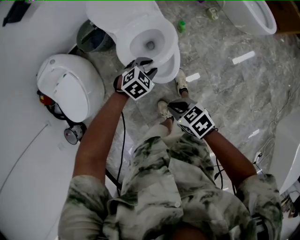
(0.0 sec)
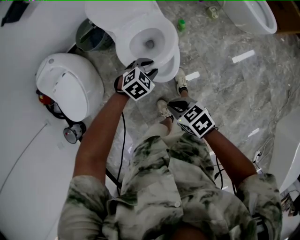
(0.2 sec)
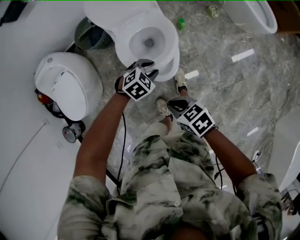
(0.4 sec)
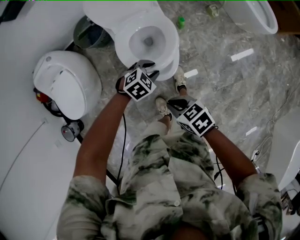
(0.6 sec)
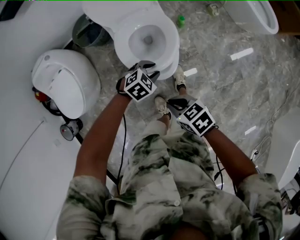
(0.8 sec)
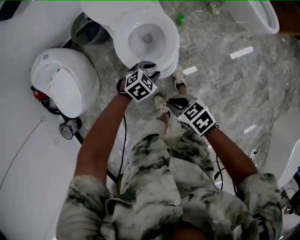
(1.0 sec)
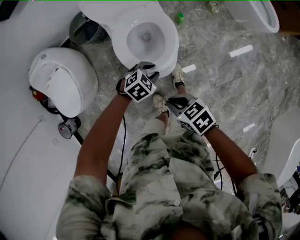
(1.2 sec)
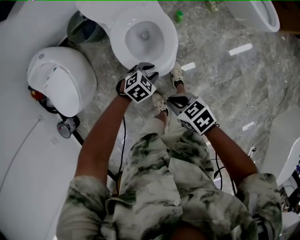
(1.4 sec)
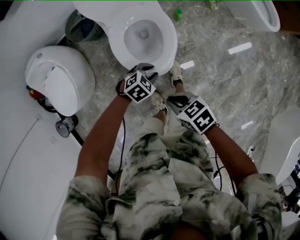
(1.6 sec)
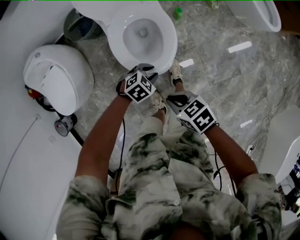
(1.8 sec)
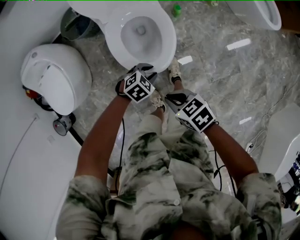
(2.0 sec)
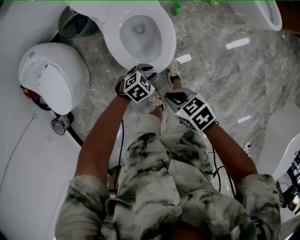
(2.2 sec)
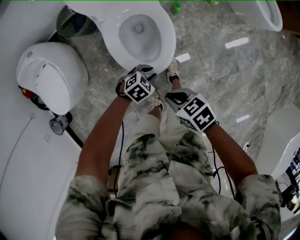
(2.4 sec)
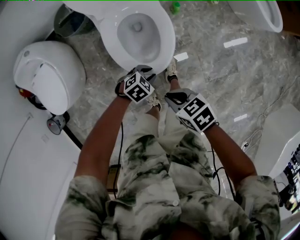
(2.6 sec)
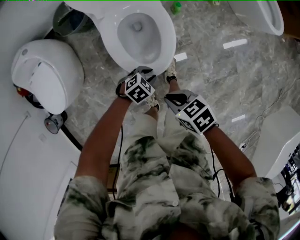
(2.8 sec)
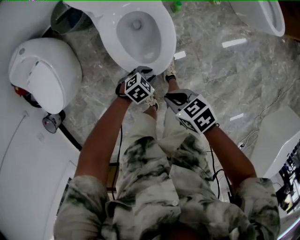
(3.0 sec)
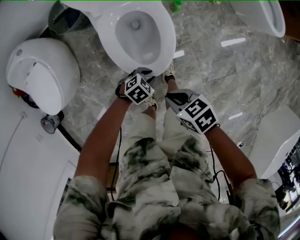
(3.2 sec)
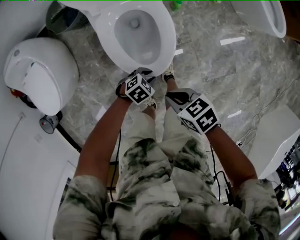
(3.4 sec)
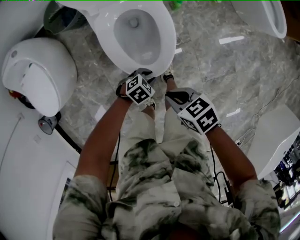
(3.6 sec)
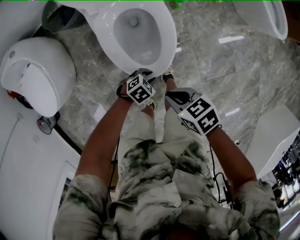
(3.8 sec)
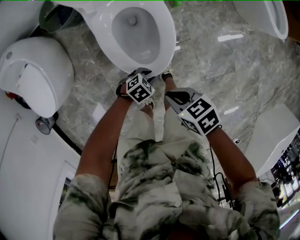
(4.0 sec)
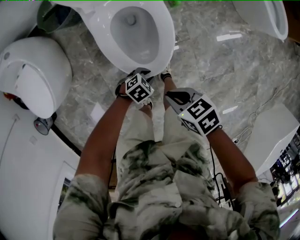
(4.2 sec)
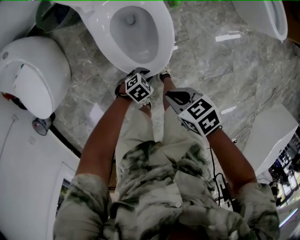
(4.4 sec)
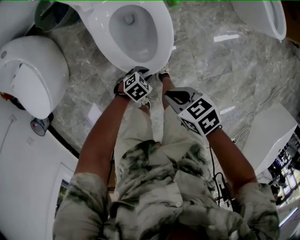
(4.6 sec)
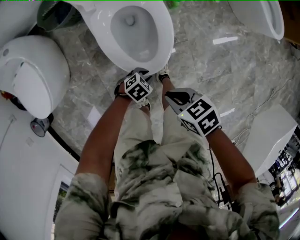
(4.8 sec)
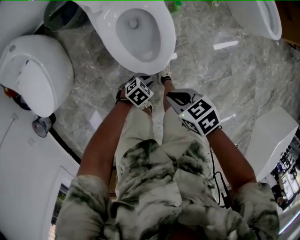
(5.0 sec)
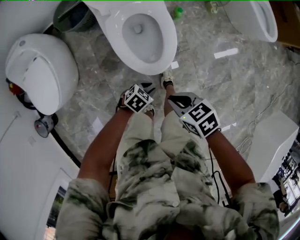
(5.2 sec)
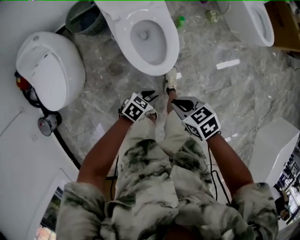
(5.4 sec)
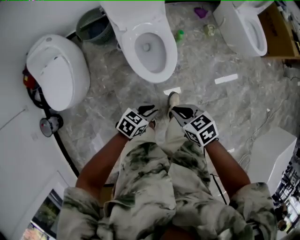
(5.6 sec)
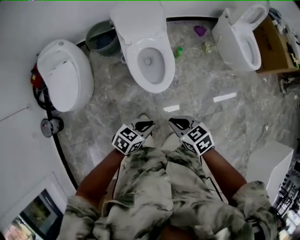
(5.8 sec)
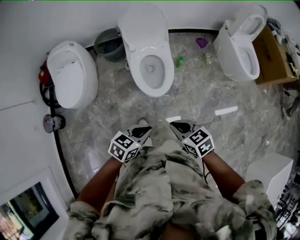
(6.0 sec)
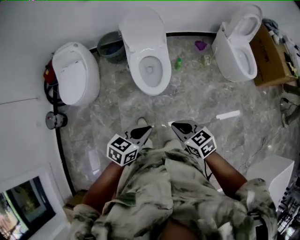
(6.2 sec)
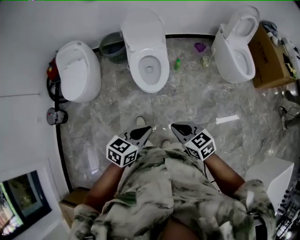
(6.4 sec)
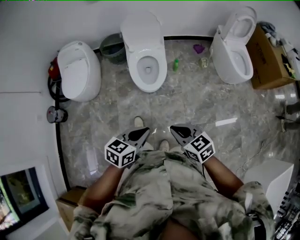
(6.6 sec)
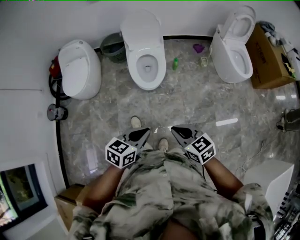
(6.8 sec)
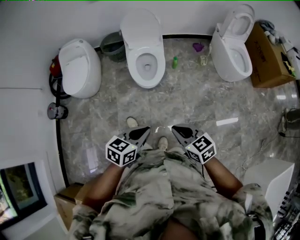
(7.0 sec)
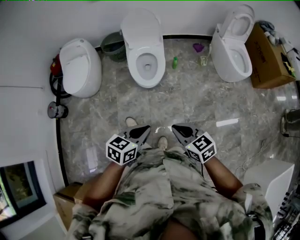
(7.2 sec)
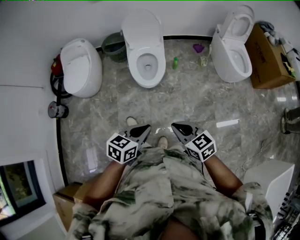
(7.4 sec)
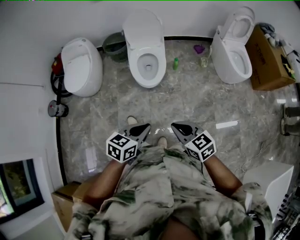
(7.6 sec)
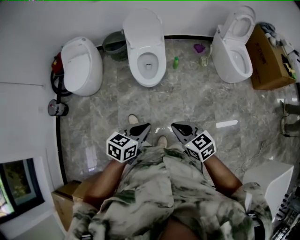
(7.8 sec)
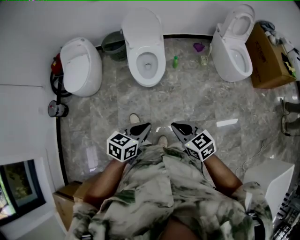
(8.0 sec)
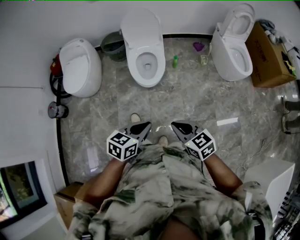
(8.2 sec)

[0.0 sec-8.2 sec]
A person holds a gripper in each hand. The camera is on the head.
0.0 sec to 1.6 sec: The left gripper moves downward, some 10 cm.
1.6 sec to 3.2 sec: The left gripper moves downward, some 10 cm; the right gripper travels downward by about 10 cm.
3.2 sec to 5.0 sec: The left gripper moves some 5 cm.
5.0 sec to 6.6 sec: The left gripper travels upward by about 50 cm, turns by some 50 degrees, and closes its fingers, while the right gripper moves some 50 cm, and changes its angle by roughly 30 degrees.
6.6 sec to 8.2 sec: The grippers move only a little.

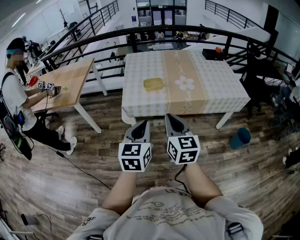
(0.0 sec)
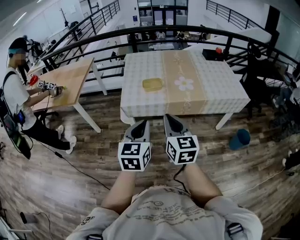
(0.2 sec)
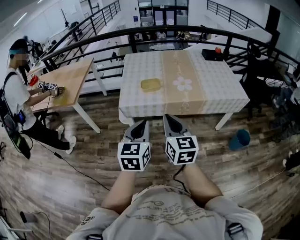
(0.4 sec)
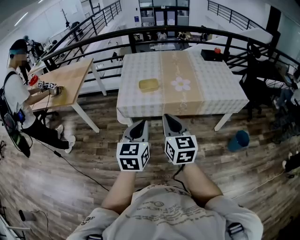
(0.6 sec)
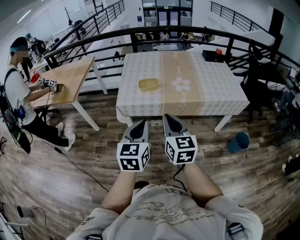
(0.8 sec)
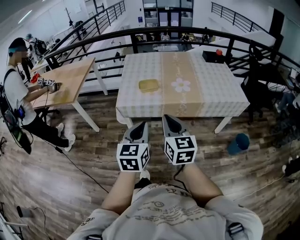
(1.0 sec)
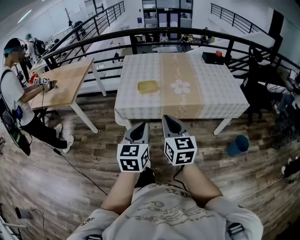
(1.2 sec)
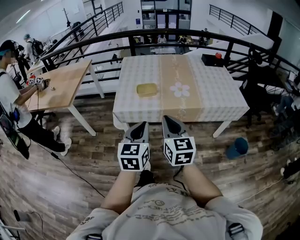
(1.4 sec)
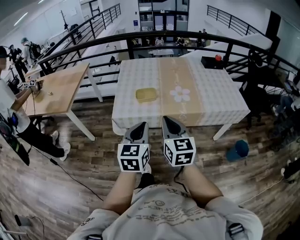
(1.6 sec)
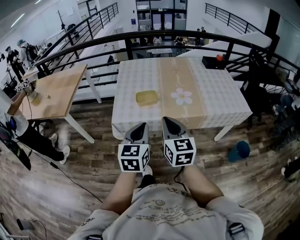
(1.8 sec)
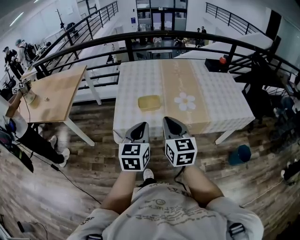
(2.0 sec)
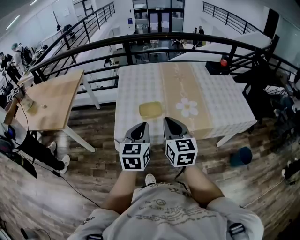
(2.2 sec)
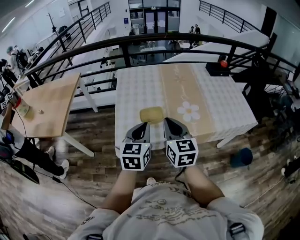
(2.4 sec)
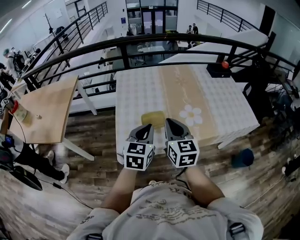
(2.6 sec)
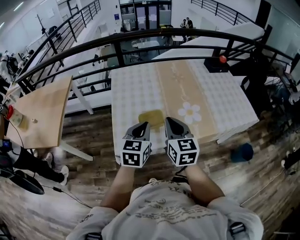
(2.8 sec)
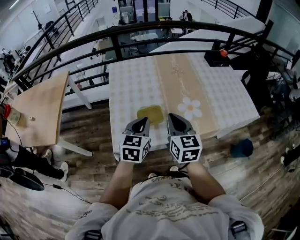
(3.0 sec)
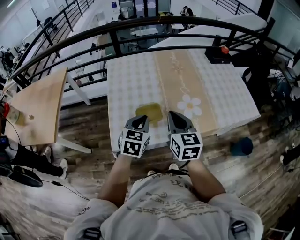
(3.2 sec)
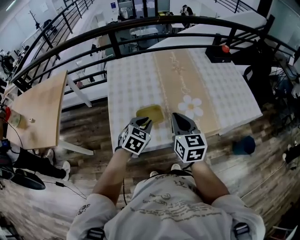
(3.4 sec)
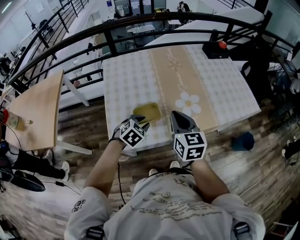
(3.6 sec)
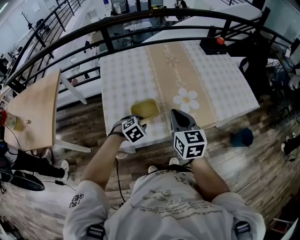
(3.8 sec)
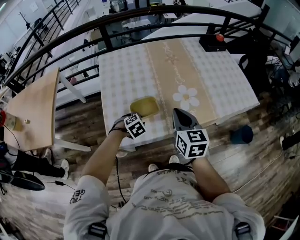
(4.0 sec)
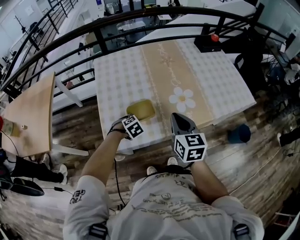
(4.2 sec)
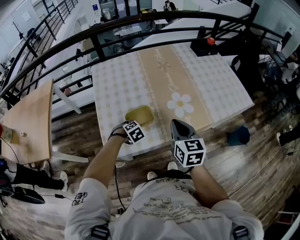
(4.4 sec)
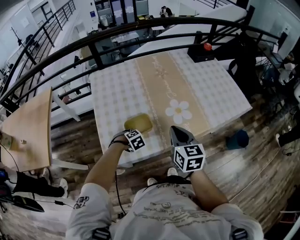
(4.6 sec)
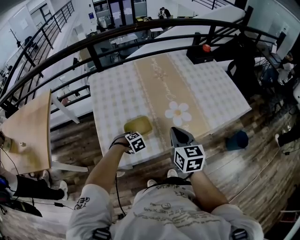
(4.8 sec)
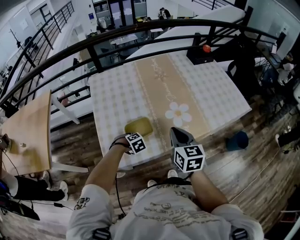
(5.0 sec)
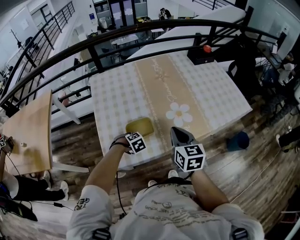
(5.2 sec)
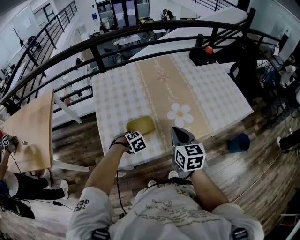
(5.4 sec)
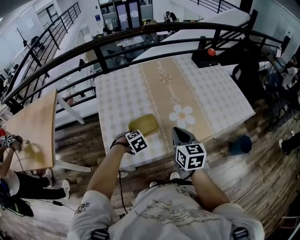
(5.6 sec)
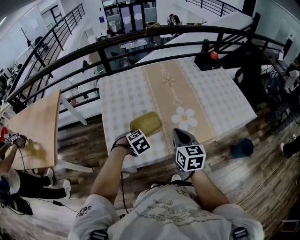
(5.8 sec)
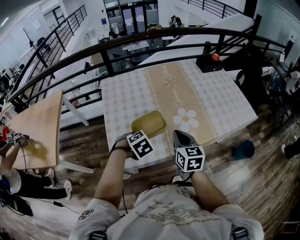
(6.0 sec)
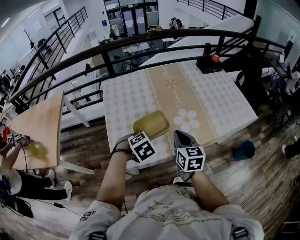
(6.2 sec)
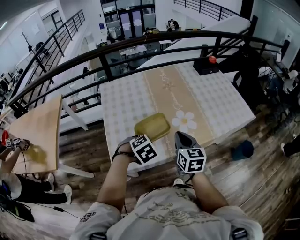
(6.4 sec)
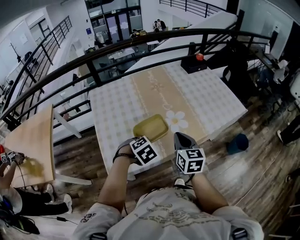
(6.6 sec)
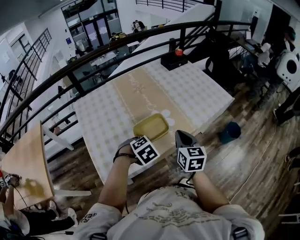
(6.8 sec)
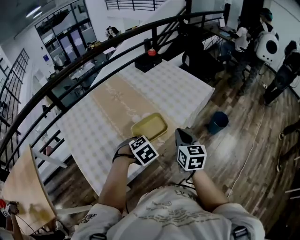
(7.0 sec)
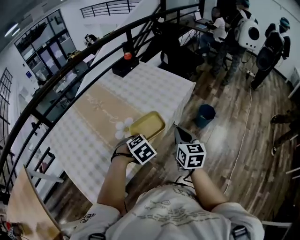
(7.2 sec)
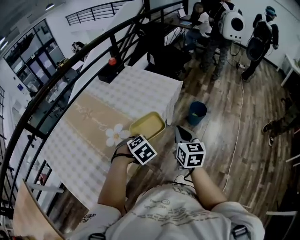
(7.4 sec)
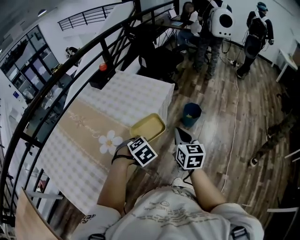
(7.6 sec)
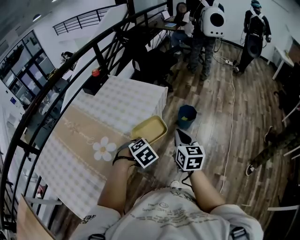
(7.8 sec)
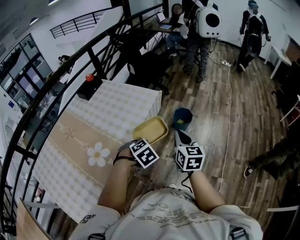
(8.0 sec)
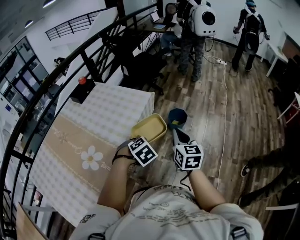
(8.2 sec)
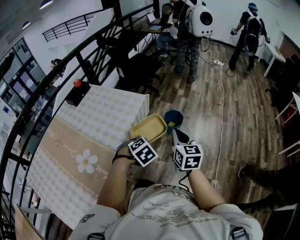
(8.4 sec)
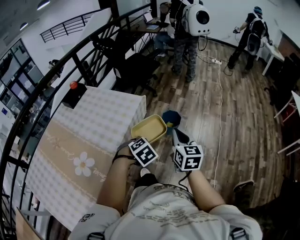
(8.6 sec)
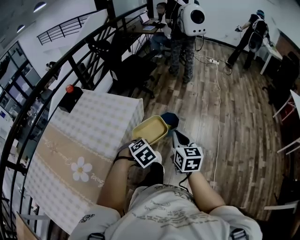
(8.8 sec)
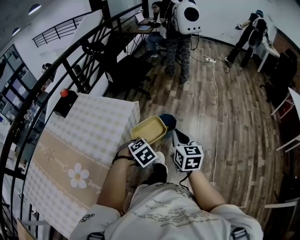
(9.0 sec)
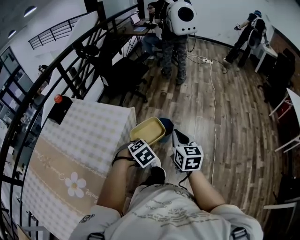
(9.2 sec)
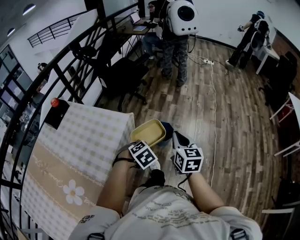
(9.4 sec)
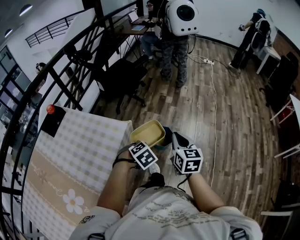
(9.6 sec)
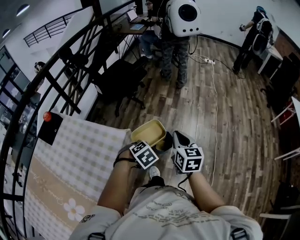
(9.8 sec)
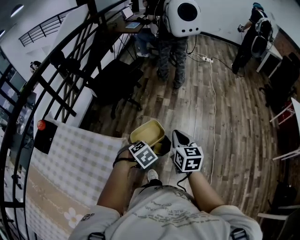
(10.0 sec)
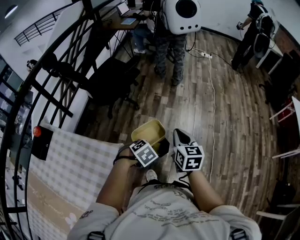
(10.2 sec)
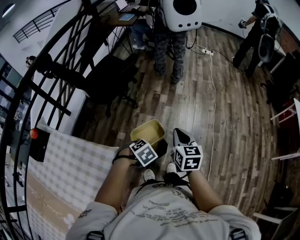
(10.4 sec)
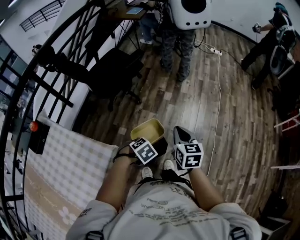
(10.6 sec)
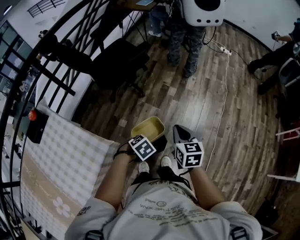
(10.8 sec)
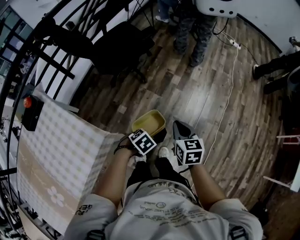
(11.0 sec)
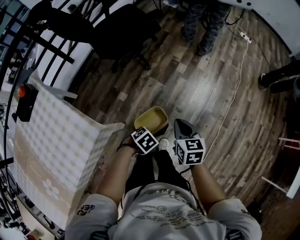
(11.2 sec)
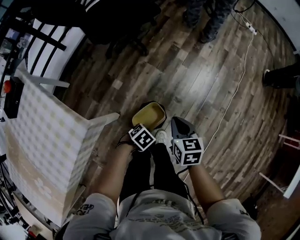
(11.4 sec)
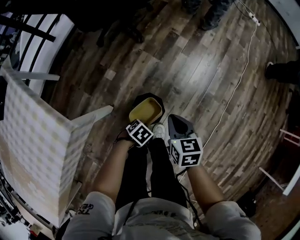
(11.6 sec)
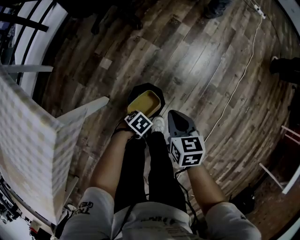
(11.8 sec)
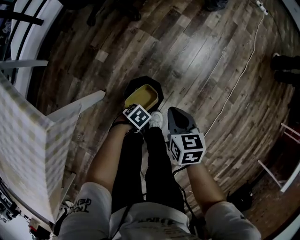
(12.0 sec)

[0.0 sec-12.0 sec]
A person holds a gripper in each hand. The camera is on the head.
0.0 sec to 1.6 sec: The two grippers go roughly 10 cm forward and to the right.
1.6 sec to 3.0 sec: Both grippers move forward, some 30 cm.
3.0 sec to 4.4 sec: The left gripper travels downward by approximately 25 cm, points its fingers roughly 50 degrees further downward, and opens up. The right gripper changes place by approximately 10 cm.
4.4 sec to 6.0 sec: The left gripper is displaced upward by approximately 15 cm, and closes its fingers.
6.0 sec to 7.6 sec: Both grippers are carried some 40 cm. The right gripper changes its angle by about 50 degrees, while the left gripper rotates approximately 40 degrees.
7.6 sec to 9.0 sec: The right gripper is displaced to the right and forward by some 25 cm; the left gripper heads forward and to the right, covering some 30 cm.
9.0 sec to 10.4 sec: The two grippers travel together, about 40 cm.
10.4 sec to 12.0 sec: Both grippers travel together downward, some 40 cm. The right gripper turns by approximately 30 degrees. Meanwhile the left gripper turns by some 40 degrees.

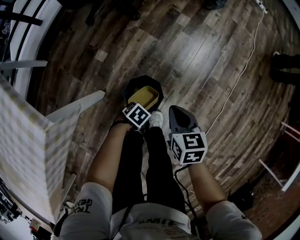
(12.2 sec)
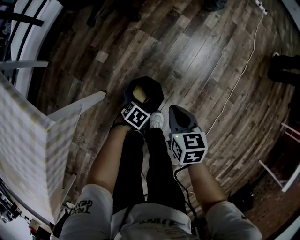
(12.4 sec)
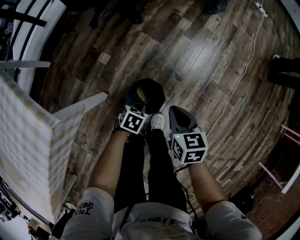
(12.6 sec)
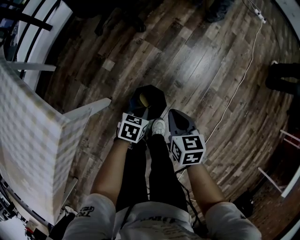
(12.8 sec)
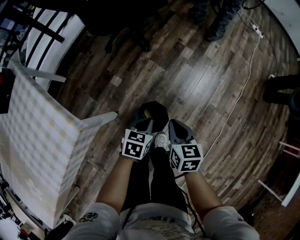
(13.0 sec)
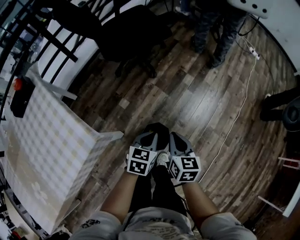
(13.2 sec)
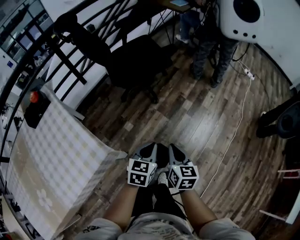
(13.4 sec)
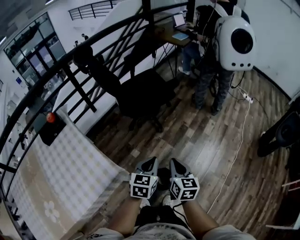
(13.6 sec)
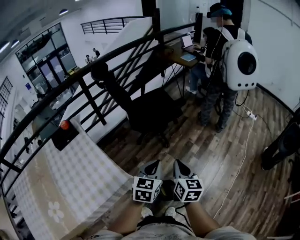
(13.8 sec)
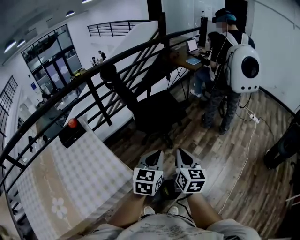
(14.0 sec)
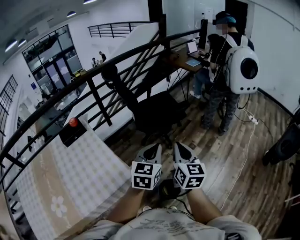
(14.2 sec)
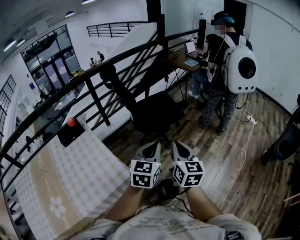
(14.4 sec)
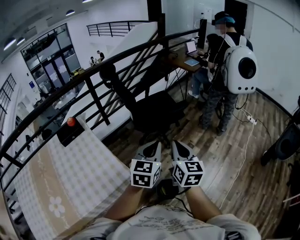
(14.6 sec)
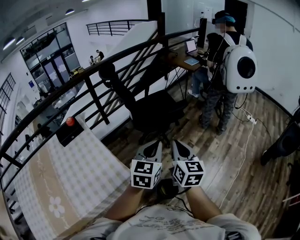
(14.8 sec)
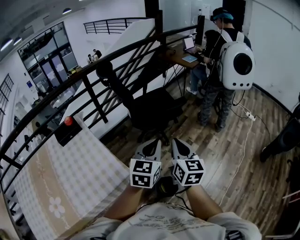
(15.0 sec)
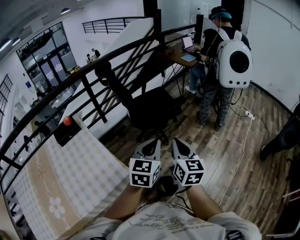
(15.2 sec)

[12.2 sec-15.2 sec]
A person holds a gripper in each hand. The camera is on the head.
12.2 sec to 13.8 sec: The two grippers go roughly 60 cm upward. The left gripper angles its fingers upward, by about 40 degrees; the right gripper angles its fingers upward, by about 30 degrees.
13.8 sec to 15.2 sec: Both grippers travel together upward, some 10 cm.
